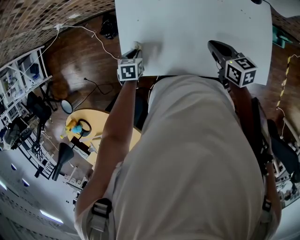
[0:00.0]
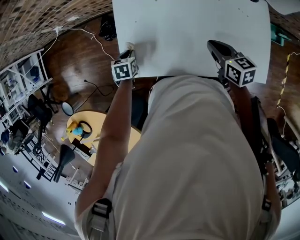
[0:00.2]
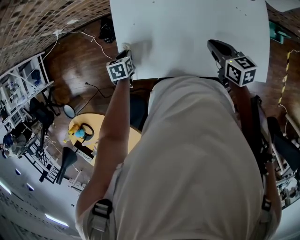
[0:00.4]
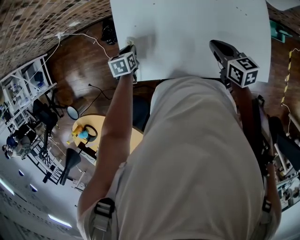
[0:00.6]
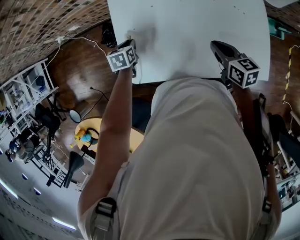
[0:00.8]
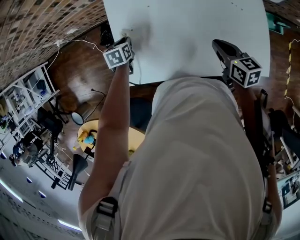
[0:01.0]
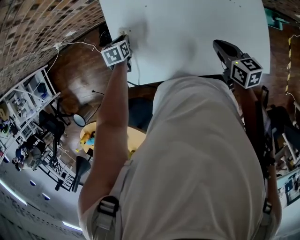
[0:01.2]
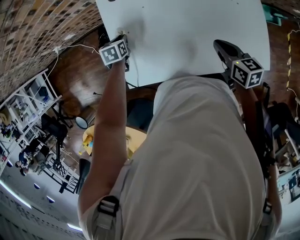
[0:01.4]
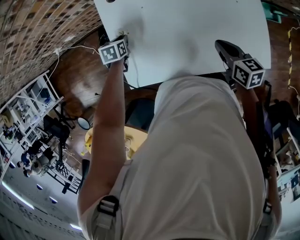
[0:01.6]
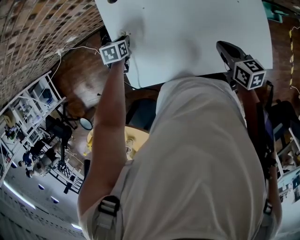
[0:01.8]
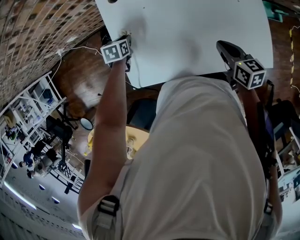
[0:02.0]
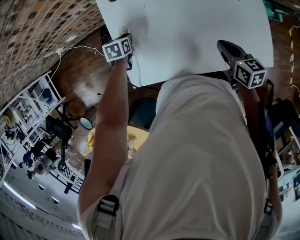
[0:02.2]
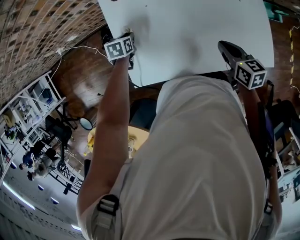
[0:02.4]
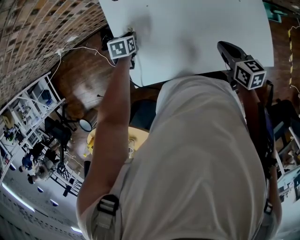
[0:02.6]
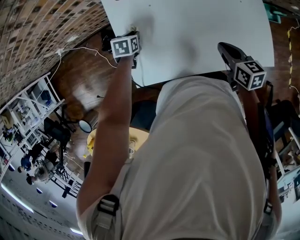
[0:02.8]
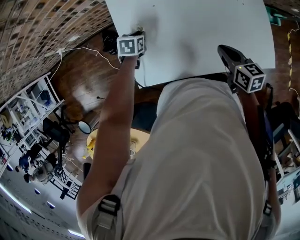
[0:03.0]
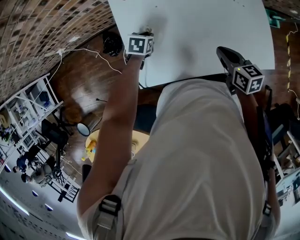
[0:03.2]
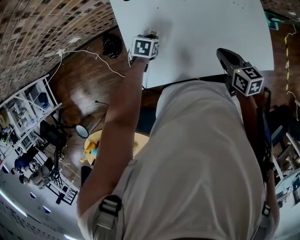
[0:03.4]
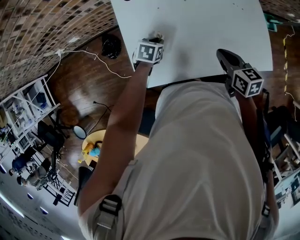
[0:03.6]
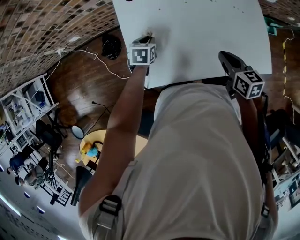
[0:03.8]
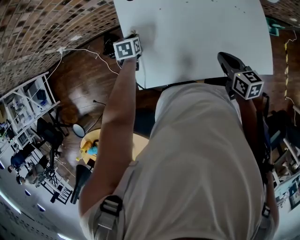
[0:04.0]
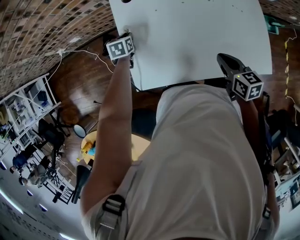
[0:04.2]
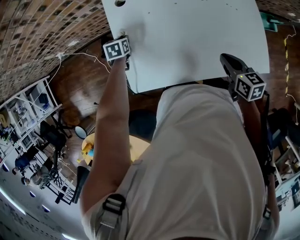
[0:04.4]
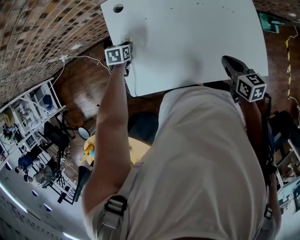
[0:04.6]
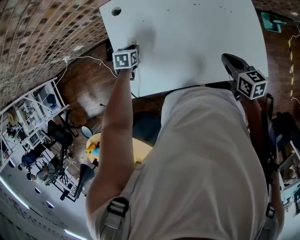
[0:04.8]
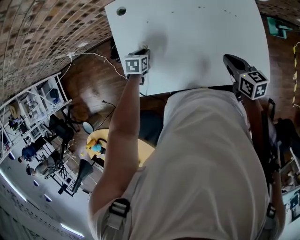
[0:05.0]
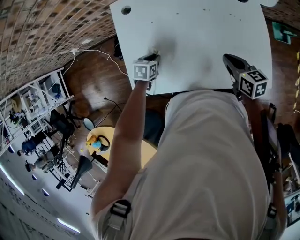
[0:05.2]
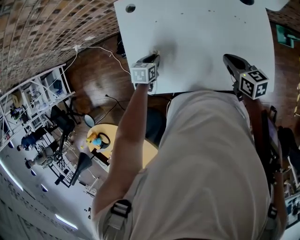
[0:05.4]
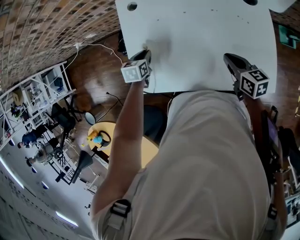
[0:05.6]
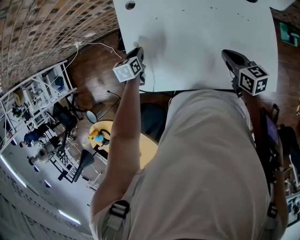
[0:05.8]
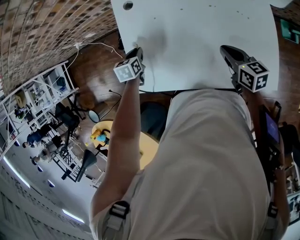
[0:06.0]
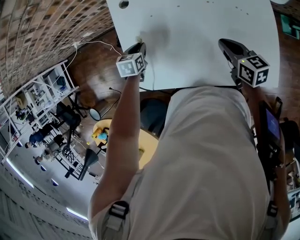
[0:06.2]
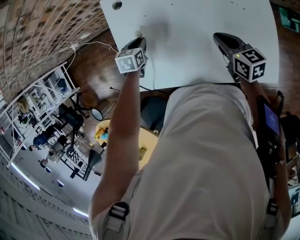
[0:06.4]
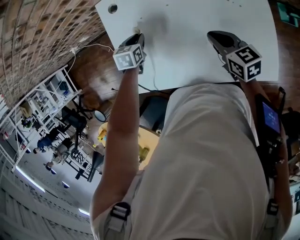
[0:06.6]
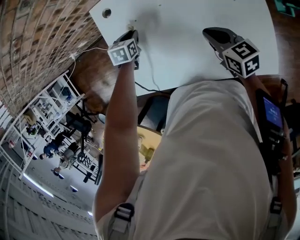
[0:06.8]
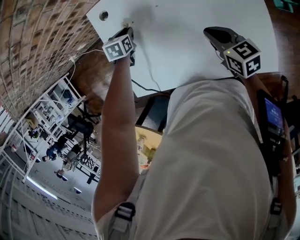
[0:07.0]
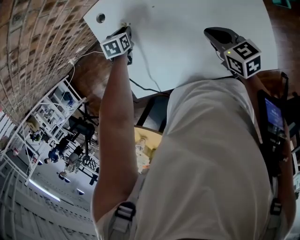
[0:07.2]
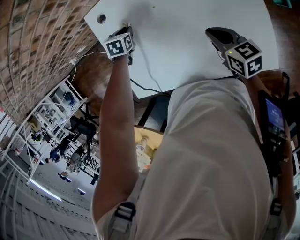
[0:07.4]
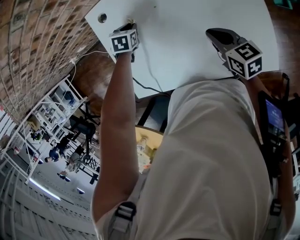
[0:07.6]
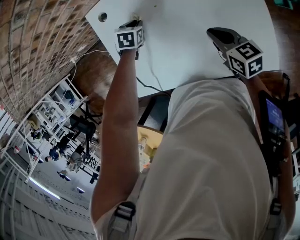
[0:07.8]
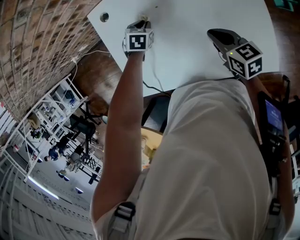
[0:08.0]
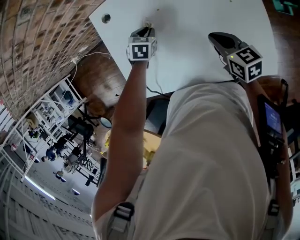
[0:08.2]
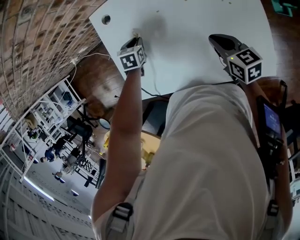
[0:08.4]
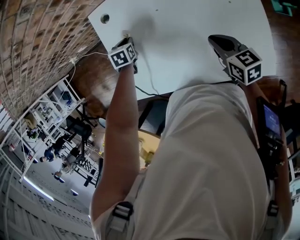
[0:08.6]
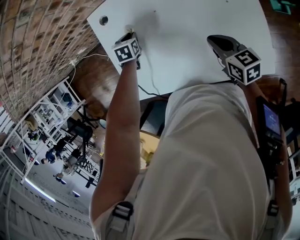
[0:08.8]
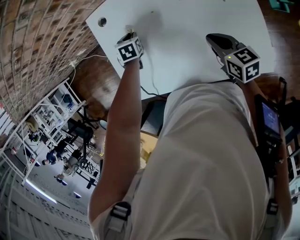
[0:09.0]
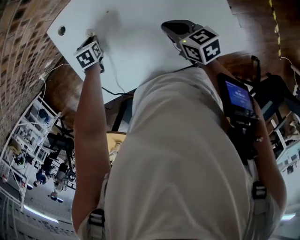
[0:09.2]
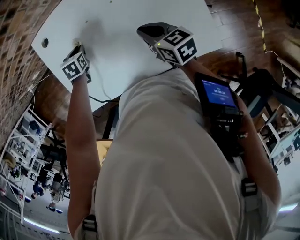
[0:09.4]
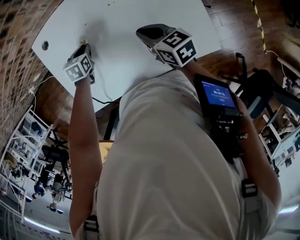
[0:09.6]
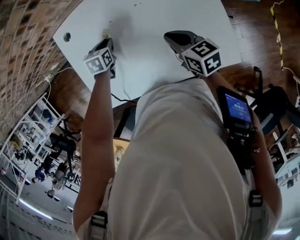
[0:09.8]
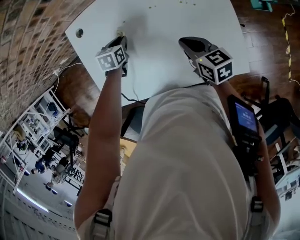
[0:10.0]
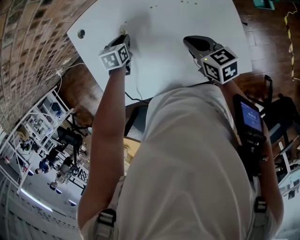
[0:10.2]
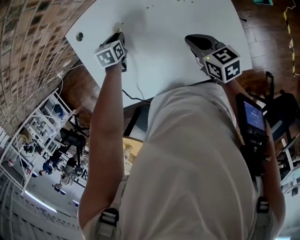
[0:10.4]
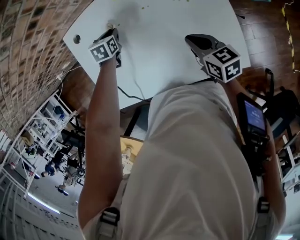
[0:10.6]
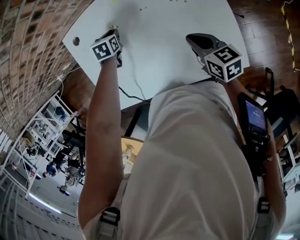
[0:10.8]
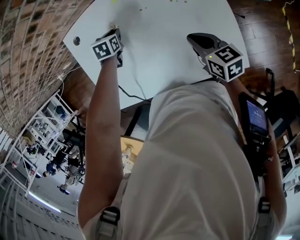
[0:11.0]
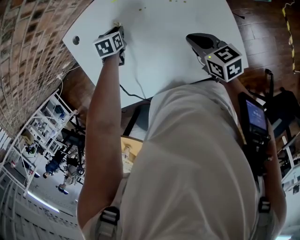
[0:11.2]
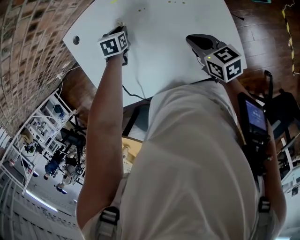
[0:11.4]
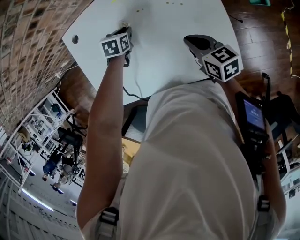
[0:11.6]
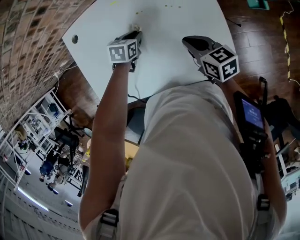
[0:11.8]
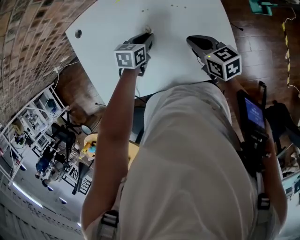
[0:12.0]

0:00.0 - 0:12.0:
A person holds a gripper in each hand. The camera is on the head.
0:00.0 - 0:01.6: The right gripper changes place by roughly 5 cm. The left gripper shifts roughly 15 cm forward.
0:01.6 - 0:03.0: The grippers stay close to where they were, moving slightly.
0:03.0 - 0:04.4: The left gripper moves to the left, some 5 cm.
0:04.4 - 0:06.0: The left gripper travels backward by about 5 cm, and goes to the right and returns, about 10 cm each way. The right gripper travels forward by roughly 10 cm.
0:06.0 - 0:07.6: The left gripper heads to the right and forward, covering about 20 cm, and turns by some 30 degrees.
0:07.6 - 0:09.0: The left gripper goes left and right, about 10 cm each way, reversing 2 times.
0:09.0 - 0:10.4: The left gripper is displaced to the right by roughly 10 cm.
0:10.4 - 0:12.0: The right gripper travels to the right by approximately 5 cm. Meanwhile the left gripper is displaced to the right and backward by some 20 cm.

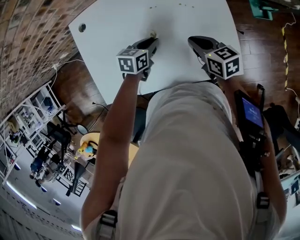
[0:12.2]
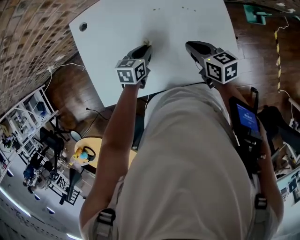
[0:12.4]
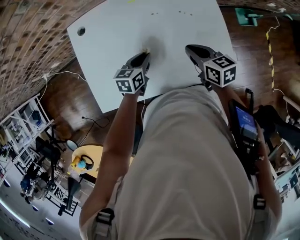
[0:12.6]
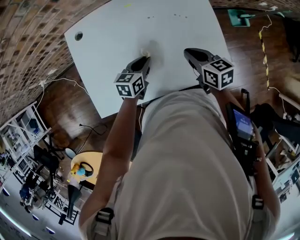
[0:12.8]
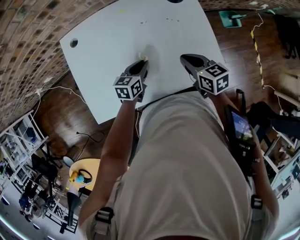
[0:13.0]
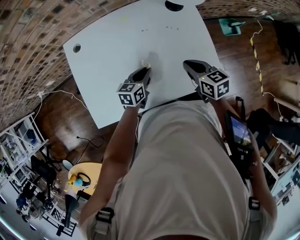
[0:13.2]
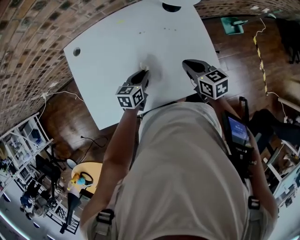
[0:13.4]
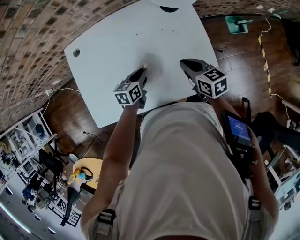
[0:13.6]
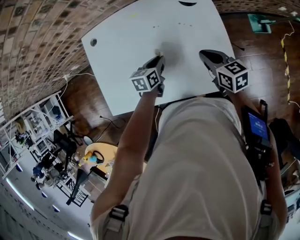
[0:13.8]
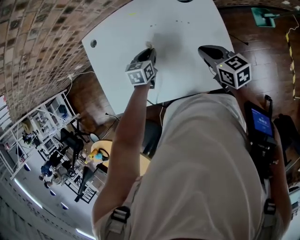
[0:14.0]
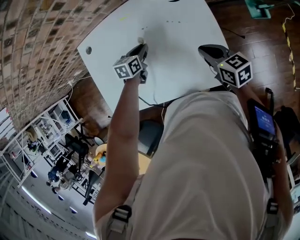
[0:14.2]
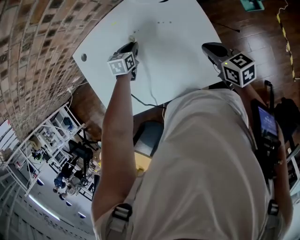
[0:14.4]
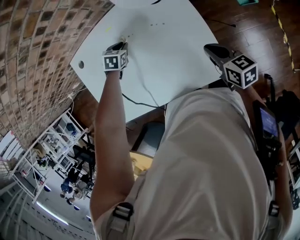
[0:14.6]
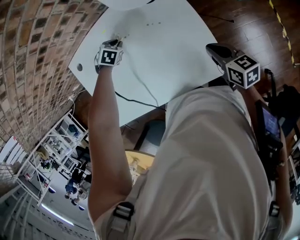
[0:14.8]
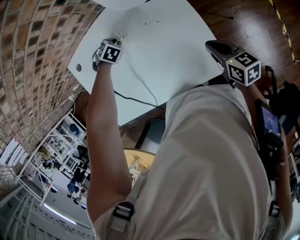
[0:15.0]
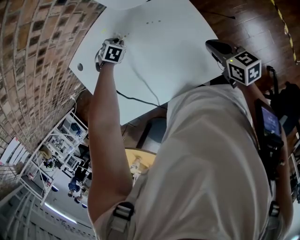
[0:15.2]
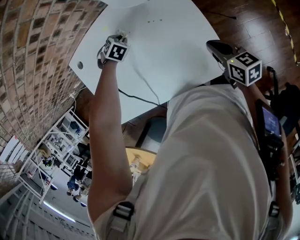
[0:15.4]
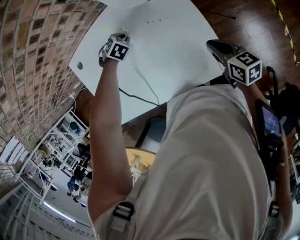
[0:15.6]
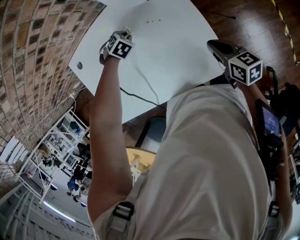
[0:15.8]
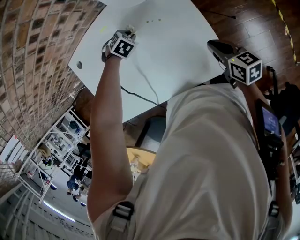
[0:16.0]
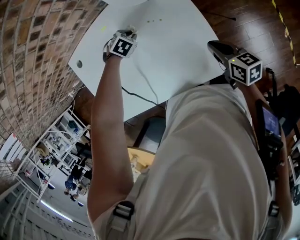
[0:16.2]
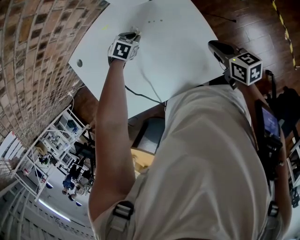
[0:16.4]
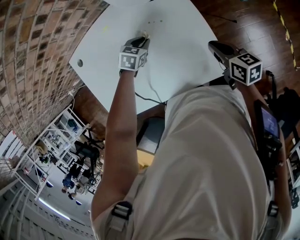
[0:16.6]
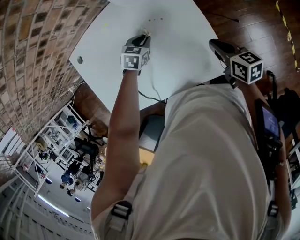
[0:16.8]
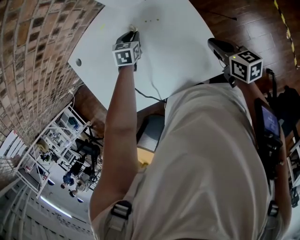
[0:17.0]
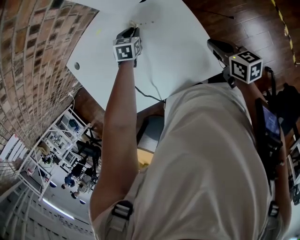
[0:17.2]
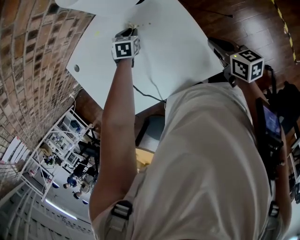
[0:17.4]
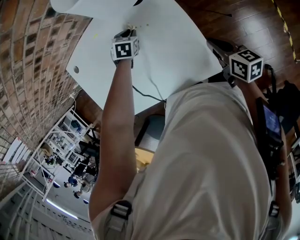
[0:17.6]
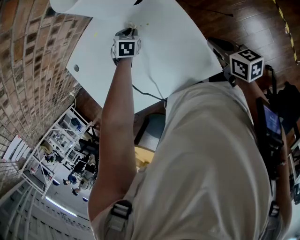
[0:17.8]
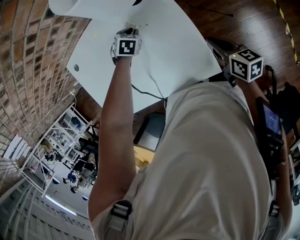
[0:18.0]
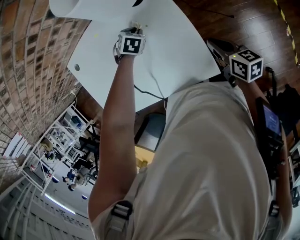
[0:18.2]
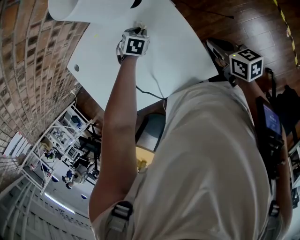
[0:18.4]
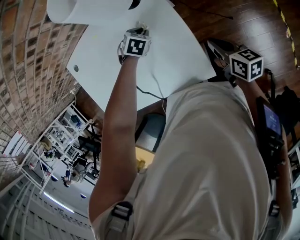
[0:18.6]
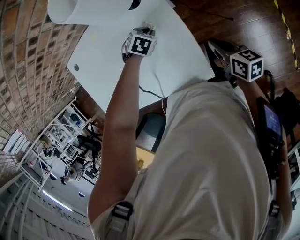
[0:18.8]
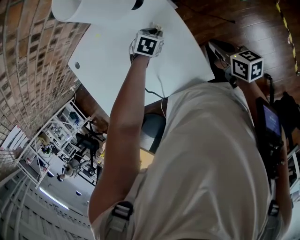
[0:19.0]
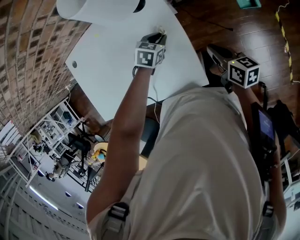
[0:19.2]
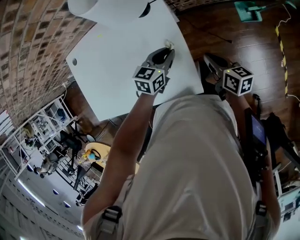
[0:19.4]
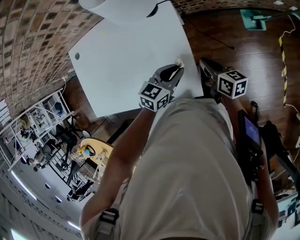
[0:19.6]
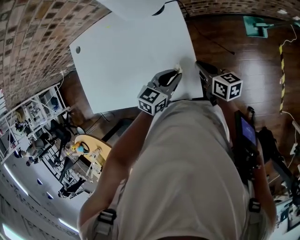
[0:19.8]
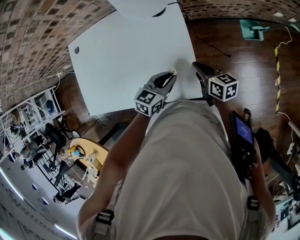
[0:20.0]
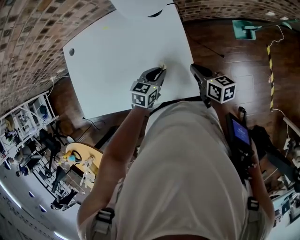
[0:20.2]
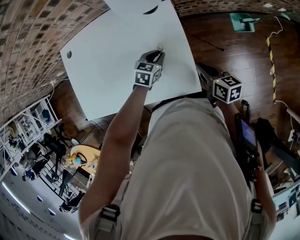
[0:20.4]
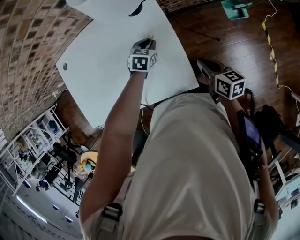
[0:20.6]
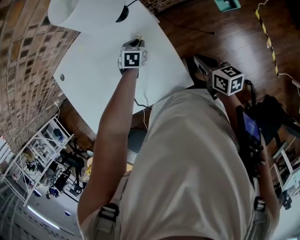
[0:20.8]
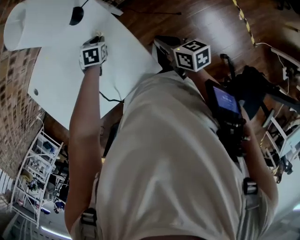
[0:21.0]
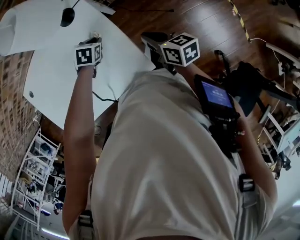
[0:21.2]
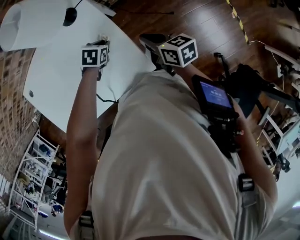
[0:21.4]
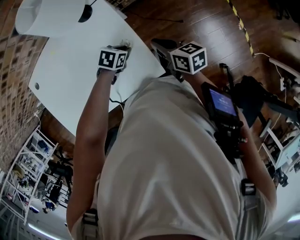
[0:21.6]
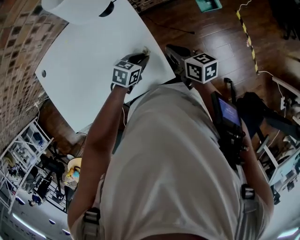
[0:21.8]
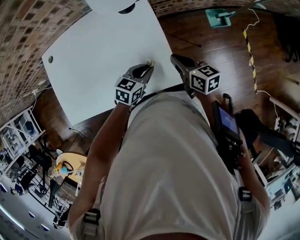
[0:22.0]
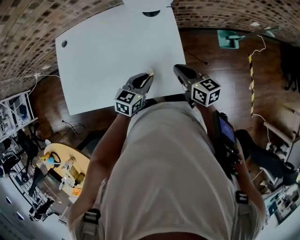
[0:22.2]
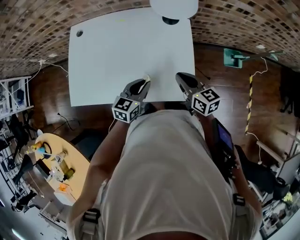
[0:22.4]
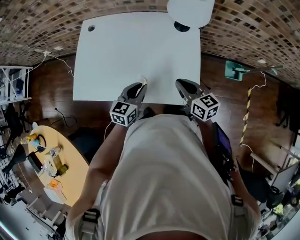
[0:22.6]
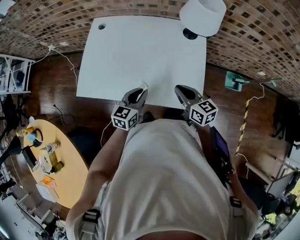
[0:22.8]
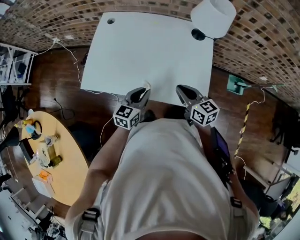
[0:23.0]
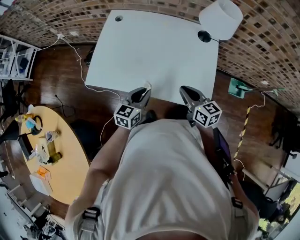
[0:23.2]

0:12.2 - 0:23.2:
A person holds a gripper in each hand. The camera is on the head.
0:12.2 - 0:13.8: The right gripper shifts some 5 cm to the right. Meanwhile the left gripper goes to the left and returns, approximately 5 cm each way.
0:13.8 - 0:15.4: The left gripper ends up about 15 cm from where it was, and rolls clockwise, seen from behind, by about 60 degrees, while the right gripper changes place by some 10 cm.
0:15.4 - 0:17.0: The left gripper ends up roughly 10 cm from where it was, and changes its angle by some 40 degrees.
0:17.0 - 0:18.4: The left gripper moves about 10 cm, and turns by about 20 degrees; the right gripper moves approximately 5 cm.
0:18.4 - 0:20.0: The left gripper shifts by roughly 25 cm, and tips its fingers upward by roughly 40 degrees.
0:20.0 - 0:21.6: The left gripper is displaced downward by about 10 cm, and points its fingers some 30 degrees further downward.
0:21.6 - 0:23.2: The right gripper shifts by approximately 30 cm, and turns by some 40 degrees, while the left gripper changes place by some 40 cm, and tilts its fingers about 40 degrees upward.

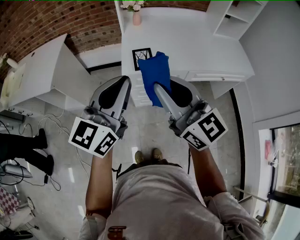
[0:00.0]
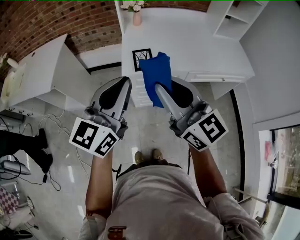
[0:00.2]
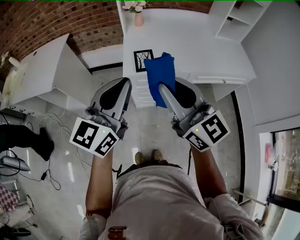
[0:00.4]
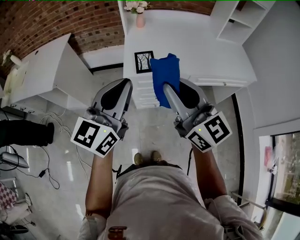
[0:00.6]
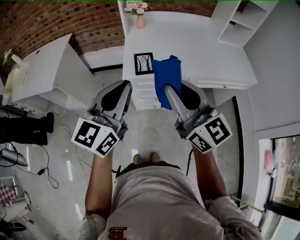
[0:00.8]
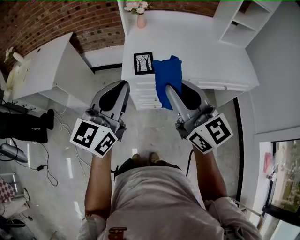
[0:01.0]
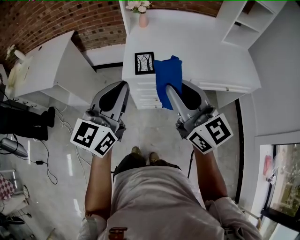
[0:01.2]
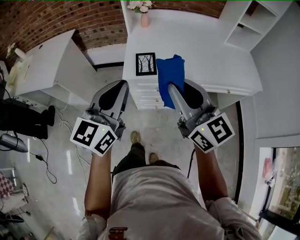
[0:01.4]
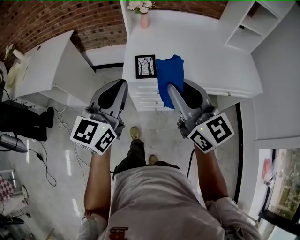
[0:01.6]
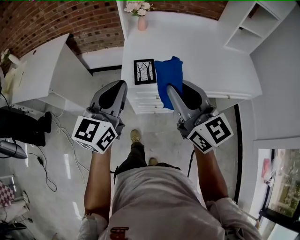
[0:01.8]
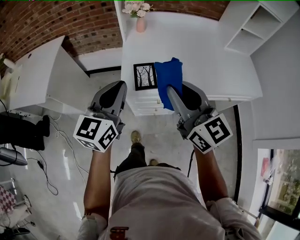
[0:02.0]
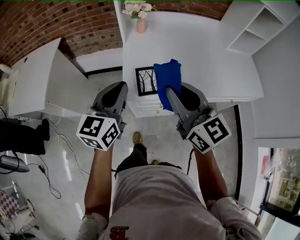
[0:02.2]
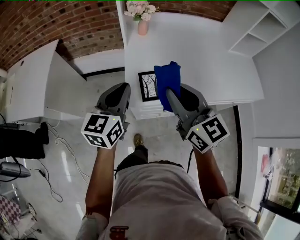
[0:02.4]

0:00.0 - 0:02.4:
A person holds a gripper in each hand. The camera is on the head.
0:00.0 - 0:01.2: The right gripper shifts some 5 cm to the right.
0:01.2 - 0:02.4: The right gripper is displaced forward by about 20 cm; the left gripper travels forward and downward by roughly 25 cm.
